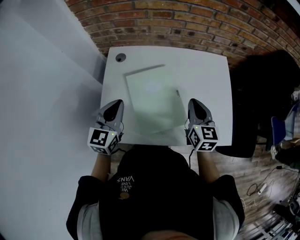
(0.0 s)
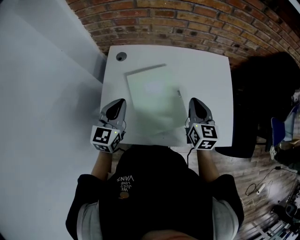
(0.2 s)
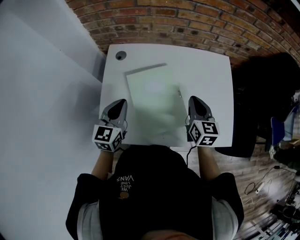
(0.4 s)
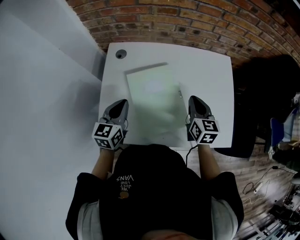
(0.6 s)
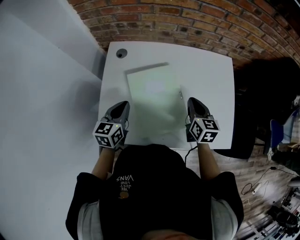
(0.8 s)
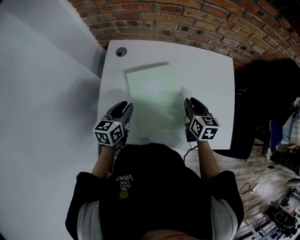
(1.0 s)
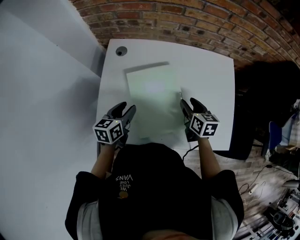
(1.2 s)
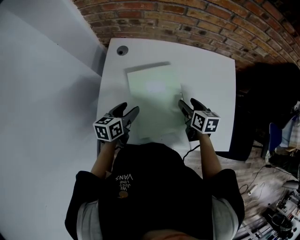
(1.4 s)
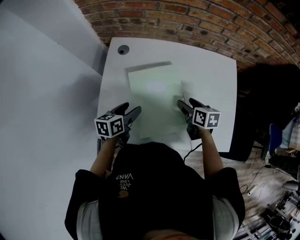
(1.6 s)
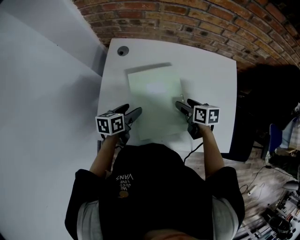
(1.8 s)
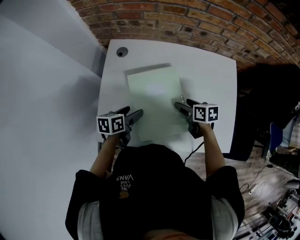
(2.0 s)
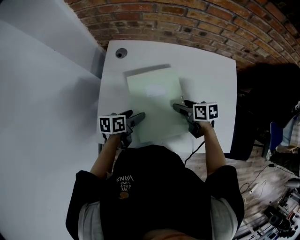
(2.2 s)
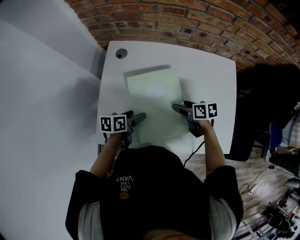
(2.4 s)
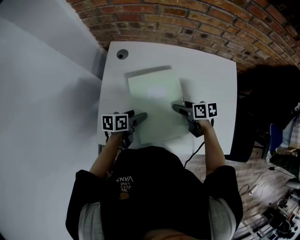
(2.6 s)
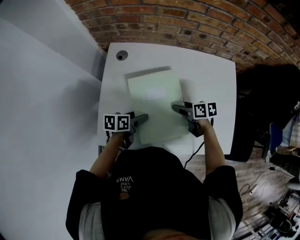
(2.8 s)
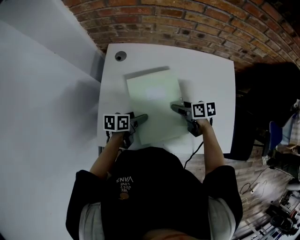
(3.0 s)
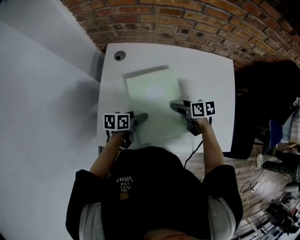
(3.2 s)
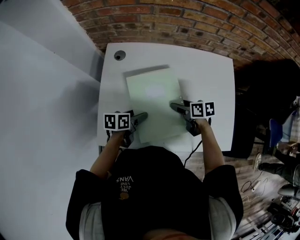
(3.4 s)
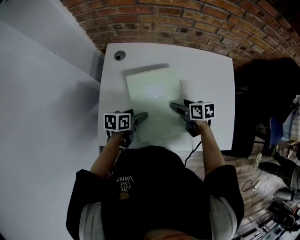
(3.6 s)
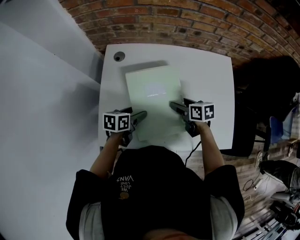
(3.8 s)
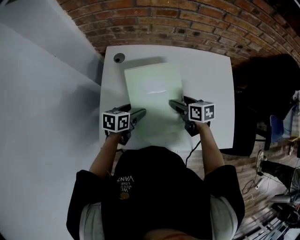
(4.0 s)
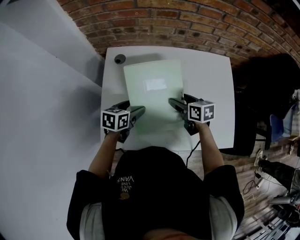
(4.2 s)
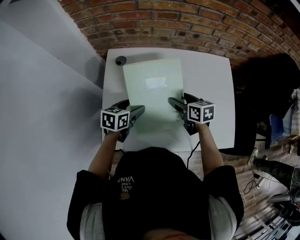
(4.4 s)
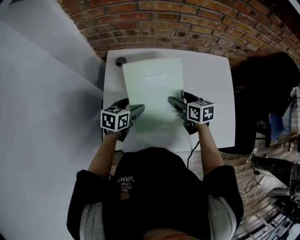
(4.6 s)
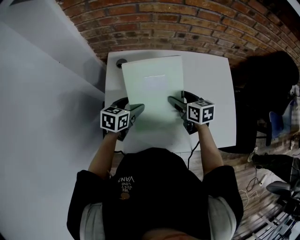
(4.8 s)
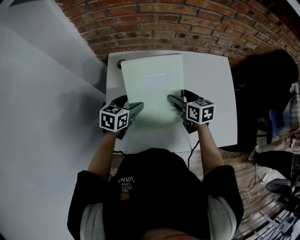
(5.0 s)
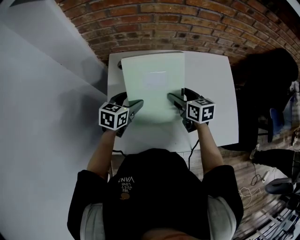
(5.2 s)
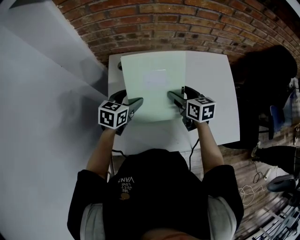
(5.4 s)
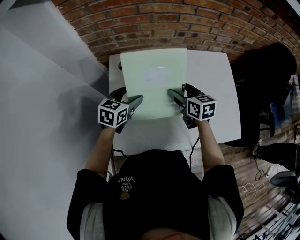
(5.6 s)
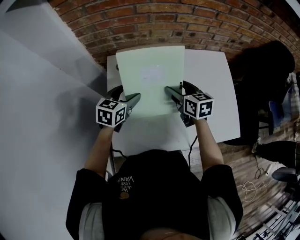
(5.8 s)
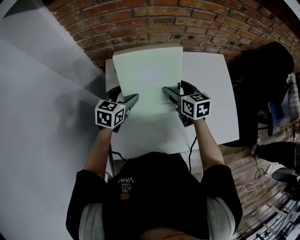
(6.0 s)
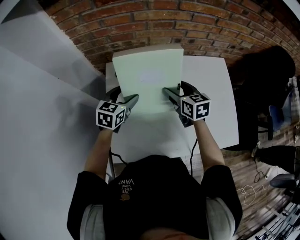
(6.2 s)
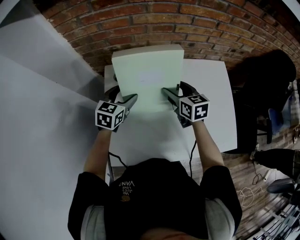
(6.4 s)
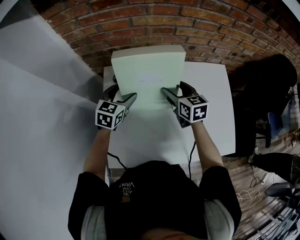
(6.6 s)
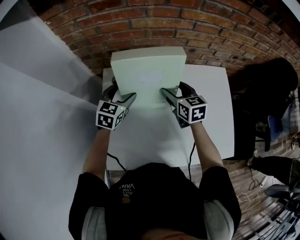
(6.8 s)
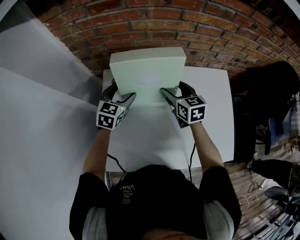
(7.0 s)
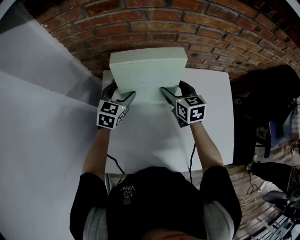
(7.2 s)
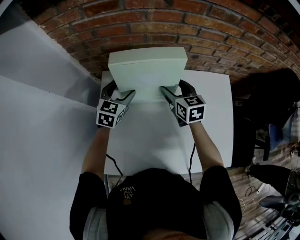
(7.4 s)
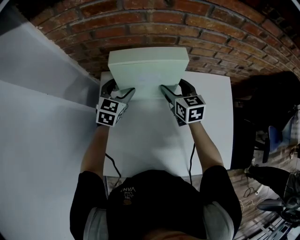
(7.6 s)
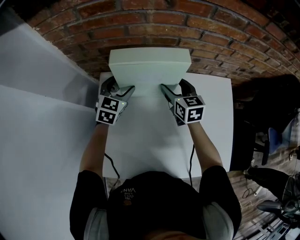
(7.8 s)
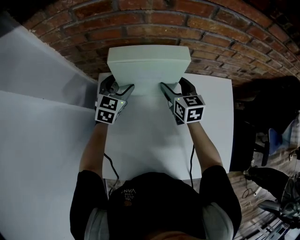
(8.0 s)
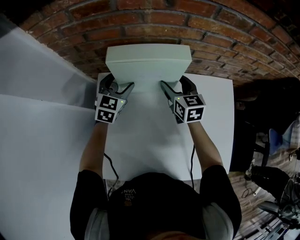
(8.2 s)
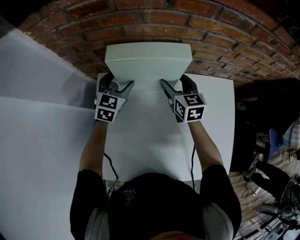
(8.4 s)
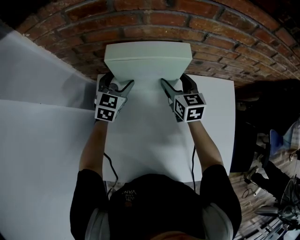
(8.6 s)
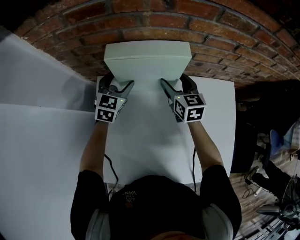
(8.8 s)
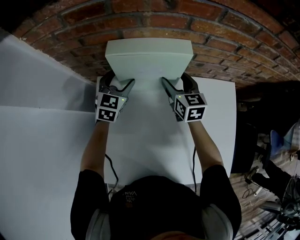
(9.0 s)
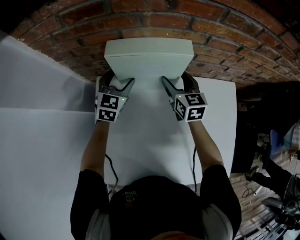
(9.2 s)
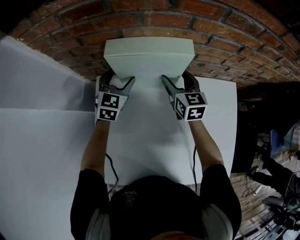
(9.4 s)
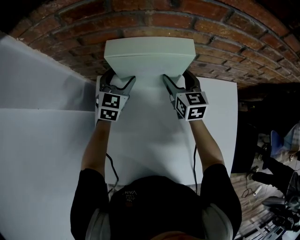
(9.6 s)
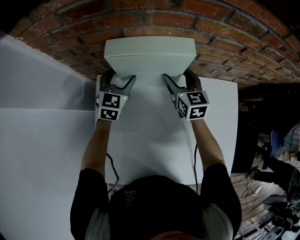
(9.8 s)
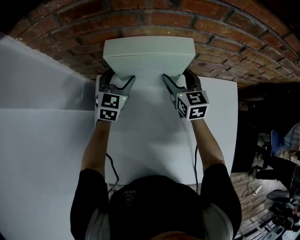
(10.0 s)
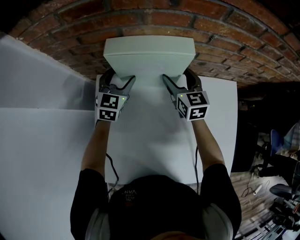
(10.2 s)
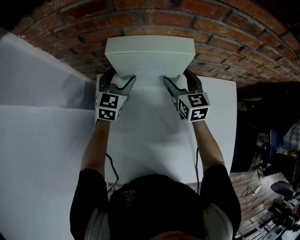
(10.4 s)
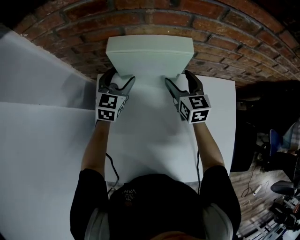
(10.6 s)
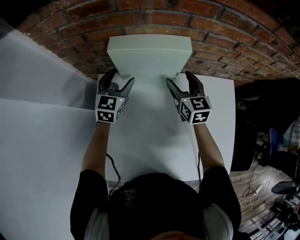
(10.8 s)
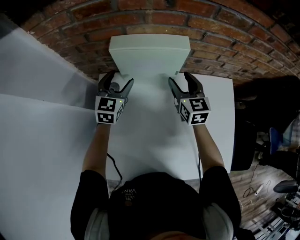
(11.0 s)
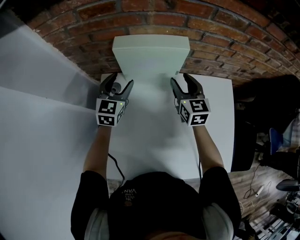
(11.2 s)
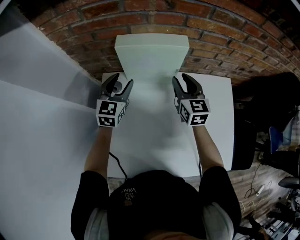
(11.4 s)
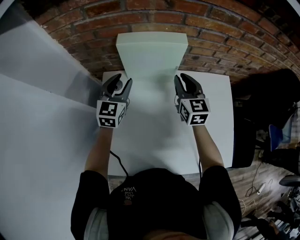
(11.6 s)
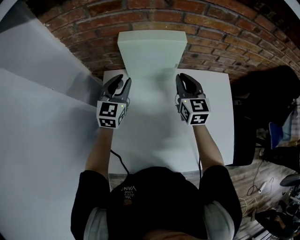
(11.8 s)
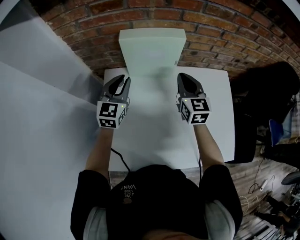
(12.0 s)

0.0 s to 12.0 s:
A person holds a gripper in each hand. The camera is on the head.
0.0 to 1.6 s: Both grippers move downward, some 15 cm. The right gripper swivels about 40 degrees, and opens its fingers. Meanwhile the left gripper changes its angle by approximately 40 degrees, and opens its fingers.
1.6 to 3.0 s: The left gripper ends up approximately 5 cm from where it was.
3.0 to 4.4 s: The two grippers go approximately 5 cm upward. The left gripper turns by some 20 degrees. Meanwhile the right gripper turns by about 20 degrees.
4.4 to 6.0 s: The left gripper travels forward, upward and to the left by roughly 10 cm, and changes its angle by roughly 20 degrees; the right gripper is displaced upward by some 5 cm.
6.0 to 7.6 s: Both grippers travel together forward, approximately 15 cm.
7.6 to 9.0 s: Both grippers move forward, roughly 5 cm.
9.0 to 10.4 s: The grippers make only small movements.
10.4 to 12.0 s: Both grippers move backward and upward, approximately 15 cm. The right gripper closes. Meanwhile the left gripper closes.

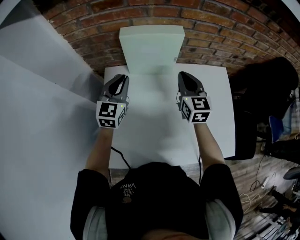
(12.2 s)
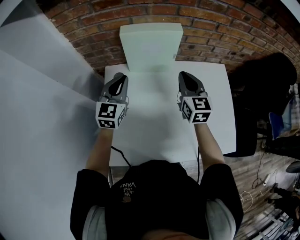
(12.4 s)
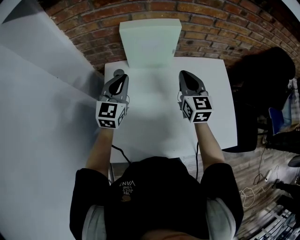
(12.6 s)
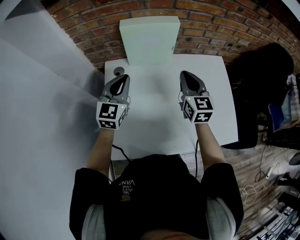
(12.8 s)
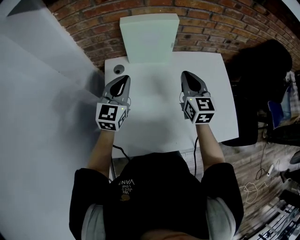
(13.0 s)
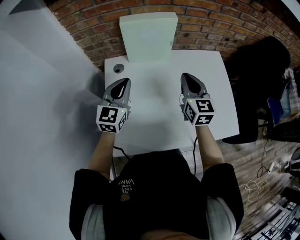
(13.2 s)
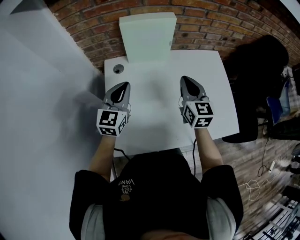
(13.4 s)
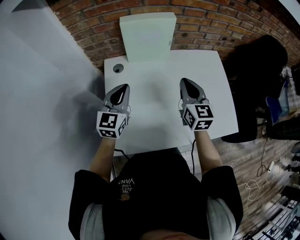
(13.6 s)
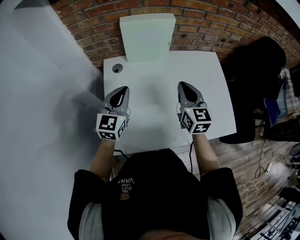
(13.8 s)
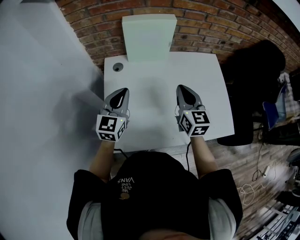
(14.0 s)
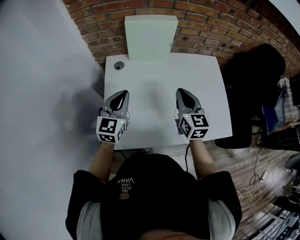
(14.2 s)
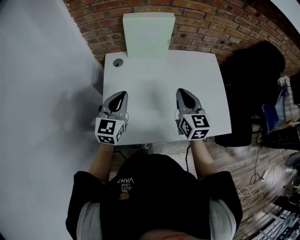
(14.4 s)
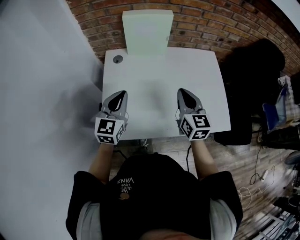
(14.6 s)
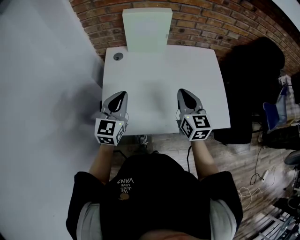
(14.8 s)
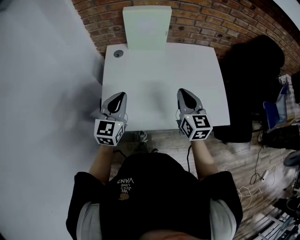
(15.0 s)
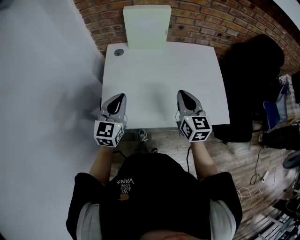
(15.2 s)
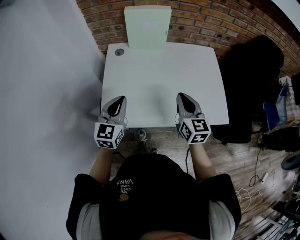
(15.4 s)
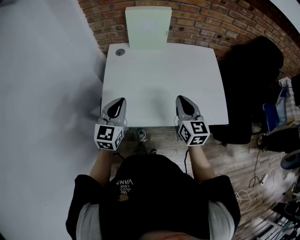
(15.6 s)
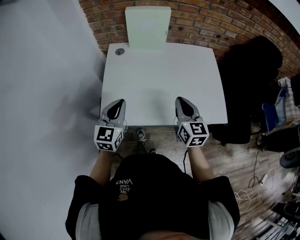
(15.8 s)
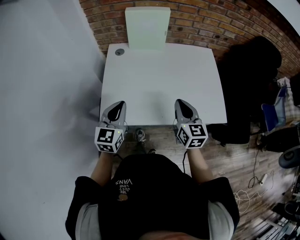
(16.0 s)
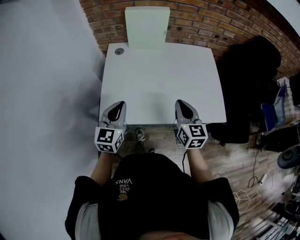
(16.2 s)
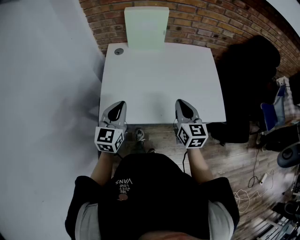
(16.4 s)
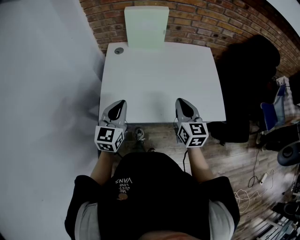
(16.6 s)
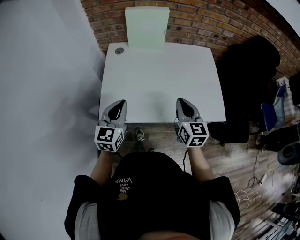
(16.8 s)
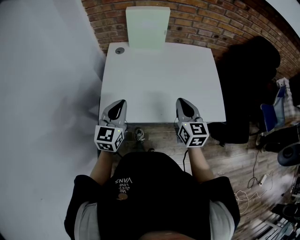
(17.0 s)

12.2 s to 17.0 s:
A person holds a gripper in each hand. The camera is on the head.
12.2 to 13.8 s: The two grippers go roughly 15 cm backward.
13.8 to 15.4 s: The grippers both shift backward by roughly 15 cm.
15.4 to 17.0 s: The grippers move only a little.

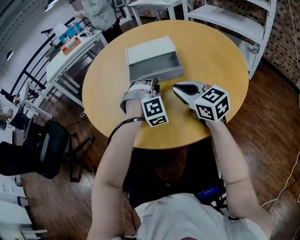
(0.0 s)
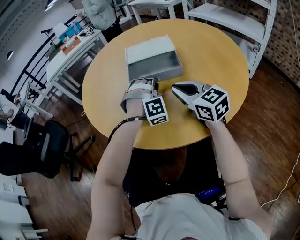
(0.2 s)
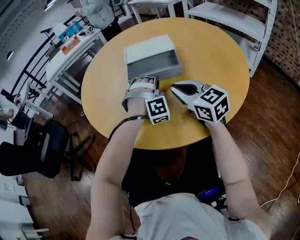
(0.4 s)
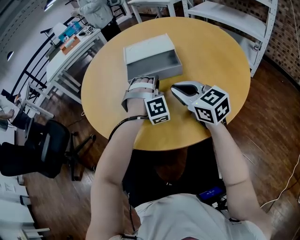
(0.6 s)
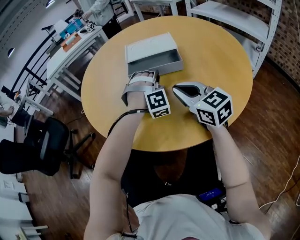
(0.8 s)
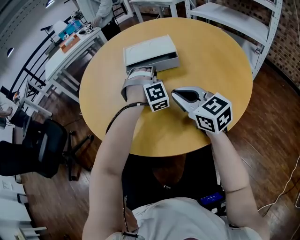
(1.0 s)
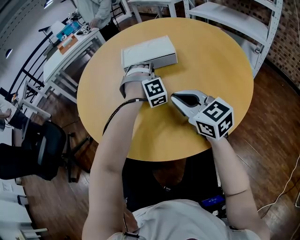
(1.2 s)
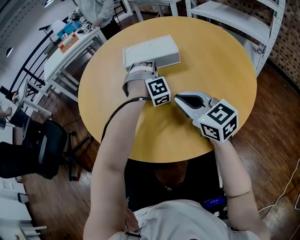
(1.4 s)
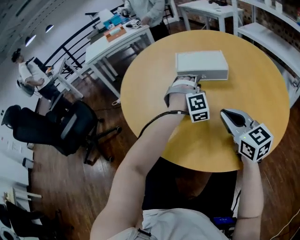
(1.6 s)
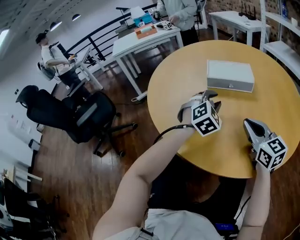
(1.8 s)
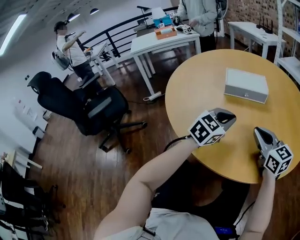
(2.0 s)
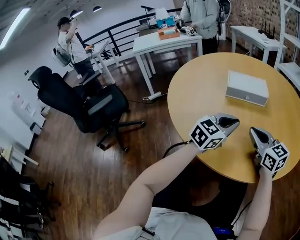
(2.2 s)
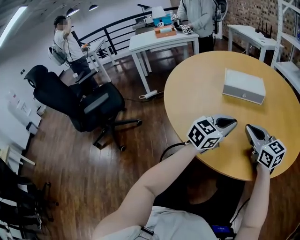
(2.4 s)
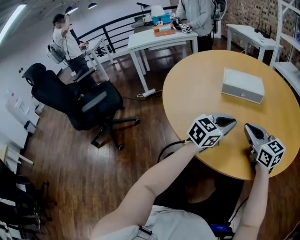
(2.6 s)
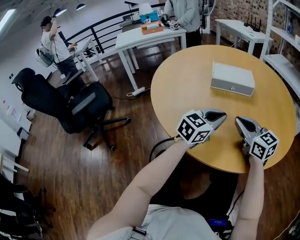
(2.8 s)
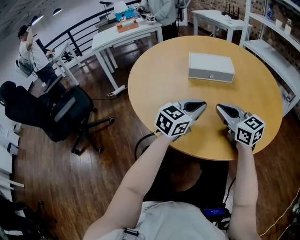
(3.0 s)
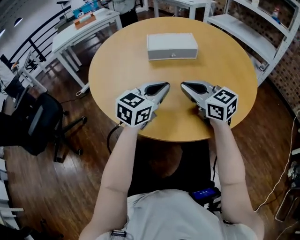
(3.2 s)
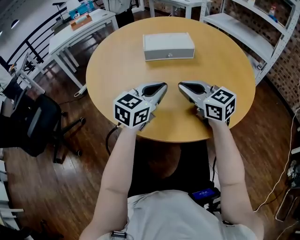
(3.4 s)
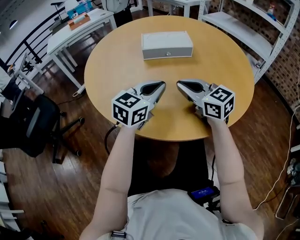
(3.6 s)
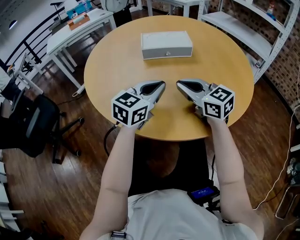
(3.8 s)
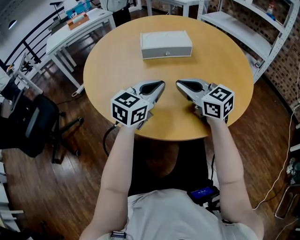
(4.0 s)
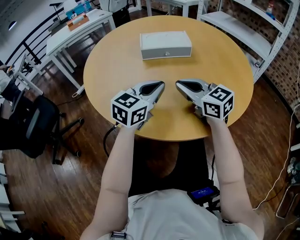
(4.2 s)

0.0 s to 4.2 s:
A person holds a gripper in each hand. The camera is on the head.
0.0 to 1.4 s: The left gripper goes roughly 15 cm forward.
1.4 to 2.8 s: The left gripper goes about 20 cm backward, and twists about 80 degrees counterclockwise, seen from behind.
2.8 to 4.2 s: The grippers stay close to where they were, moving slightly.

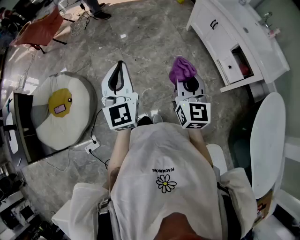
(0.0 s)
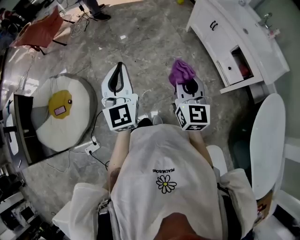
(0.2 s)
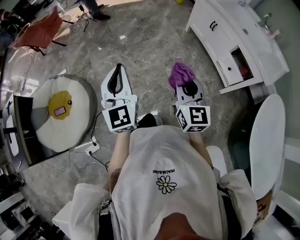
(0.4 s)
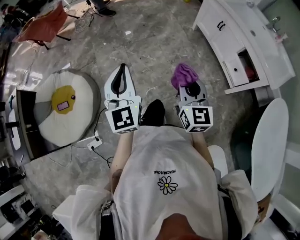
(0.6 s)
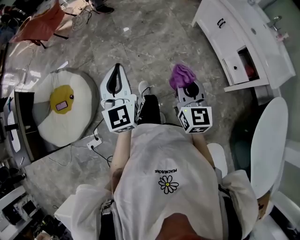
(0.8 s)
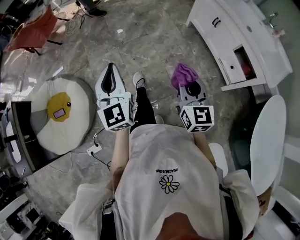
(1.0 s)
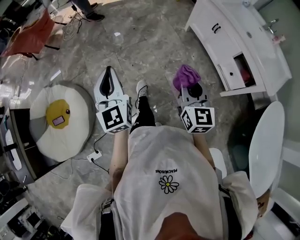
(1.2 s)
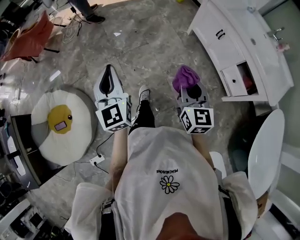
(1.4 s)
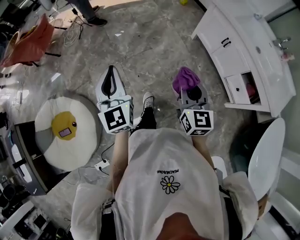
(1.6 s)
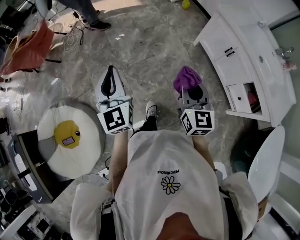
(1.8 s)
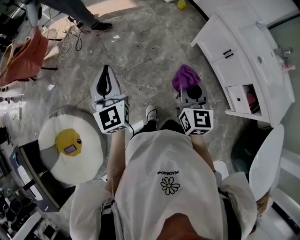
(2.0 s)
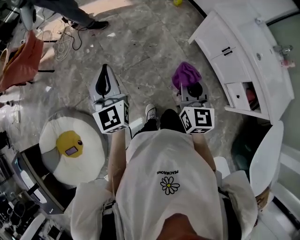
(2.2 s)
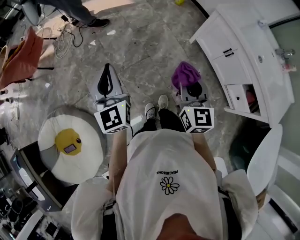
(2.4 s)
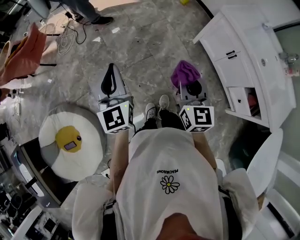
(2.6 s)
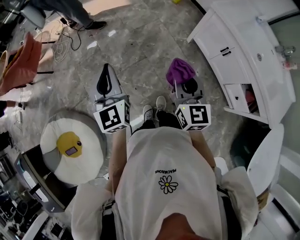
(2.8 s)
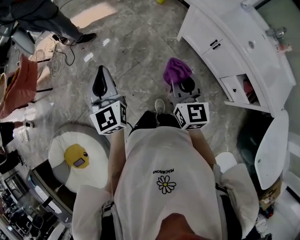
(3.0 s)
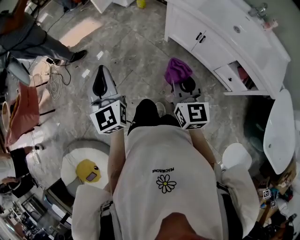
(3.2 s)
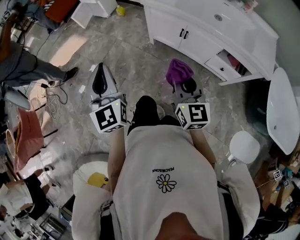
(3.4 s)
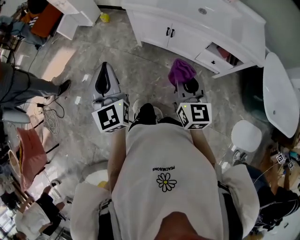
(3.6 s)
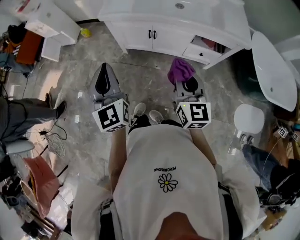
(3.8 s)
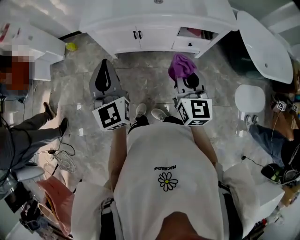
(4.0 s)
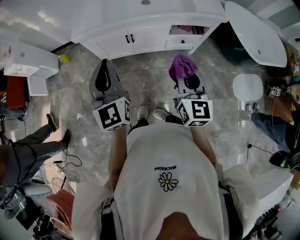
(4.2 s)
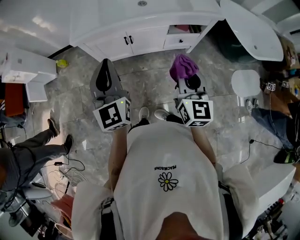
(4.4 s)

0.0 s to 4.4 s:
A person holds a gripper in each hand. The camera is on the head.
0.0 to 1.4 s: Both grippers travel together forward, some 20 cm.
1.4 to 3.0 s: The two grippers go roughly 30 cm forward.
3.0 to 4.4 s: The left gripper shifts by roughly 35 cm, and turns by about 70 degrees. The right gripper moves about 25 cm, and rotates roughly 70 degrees.
